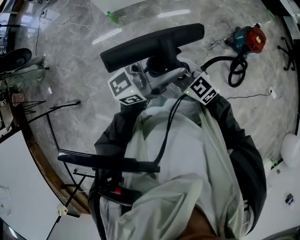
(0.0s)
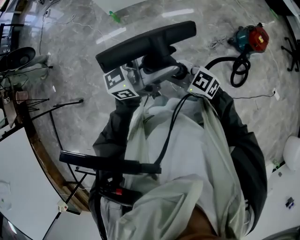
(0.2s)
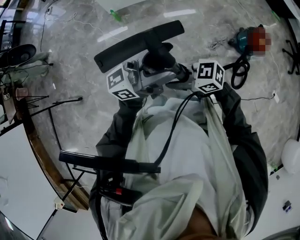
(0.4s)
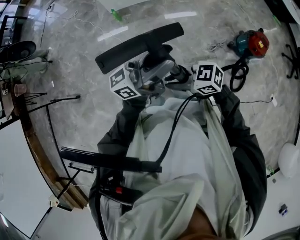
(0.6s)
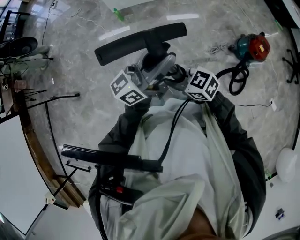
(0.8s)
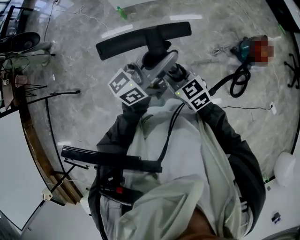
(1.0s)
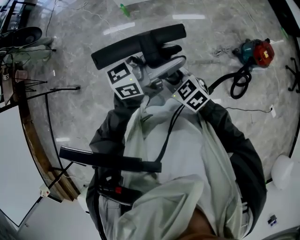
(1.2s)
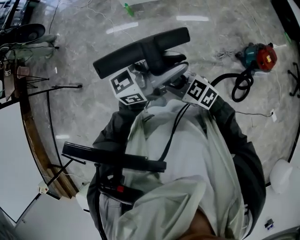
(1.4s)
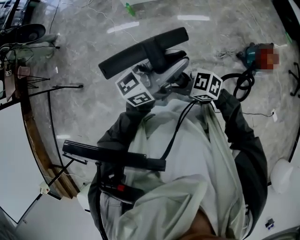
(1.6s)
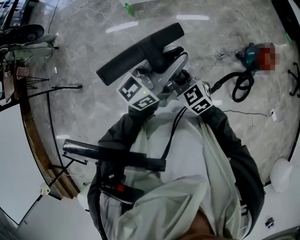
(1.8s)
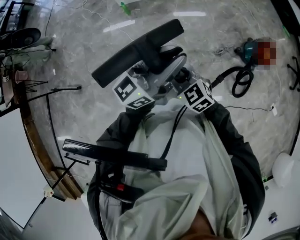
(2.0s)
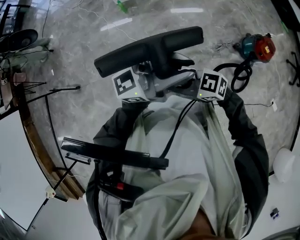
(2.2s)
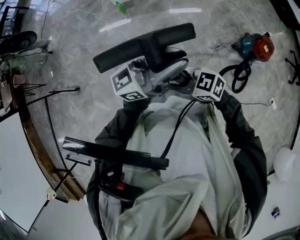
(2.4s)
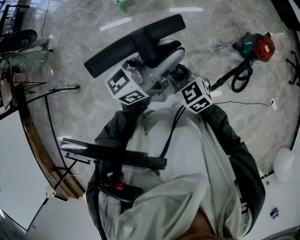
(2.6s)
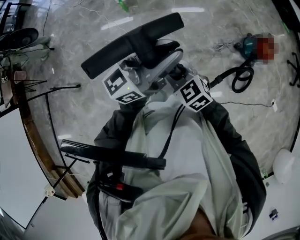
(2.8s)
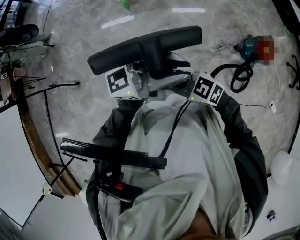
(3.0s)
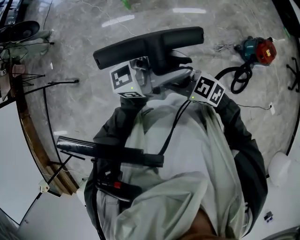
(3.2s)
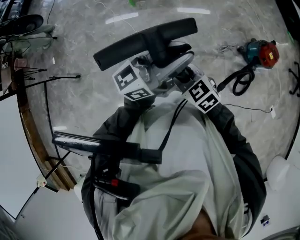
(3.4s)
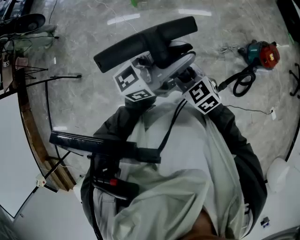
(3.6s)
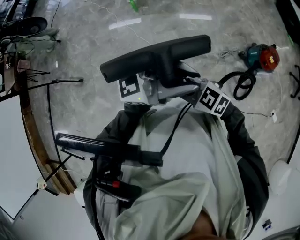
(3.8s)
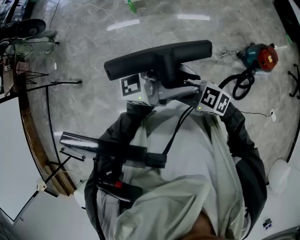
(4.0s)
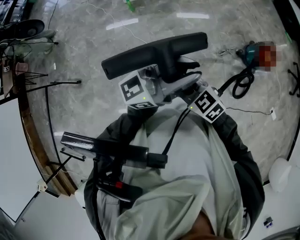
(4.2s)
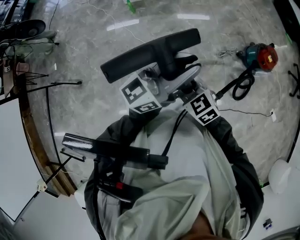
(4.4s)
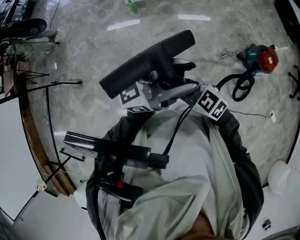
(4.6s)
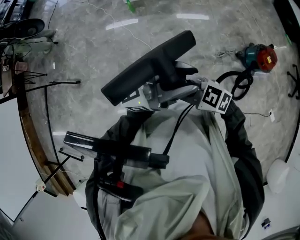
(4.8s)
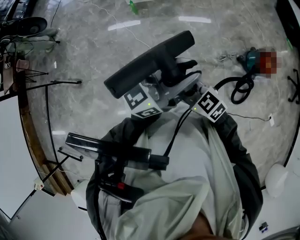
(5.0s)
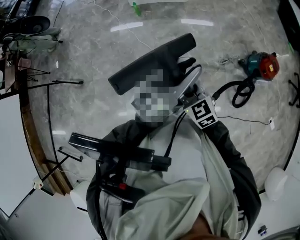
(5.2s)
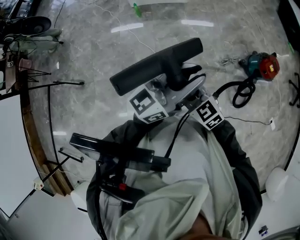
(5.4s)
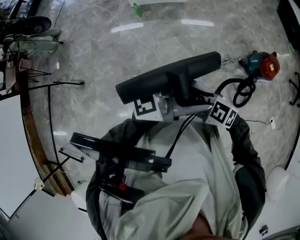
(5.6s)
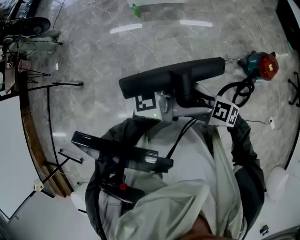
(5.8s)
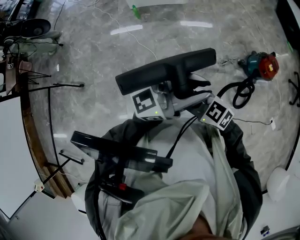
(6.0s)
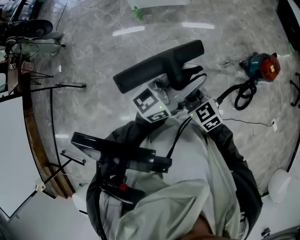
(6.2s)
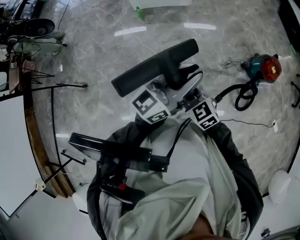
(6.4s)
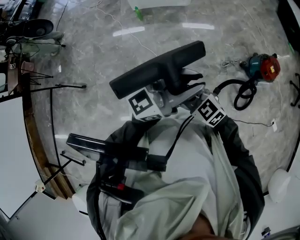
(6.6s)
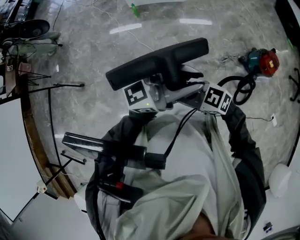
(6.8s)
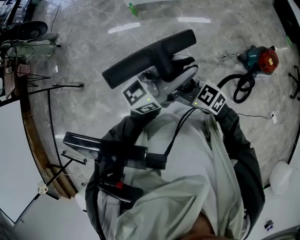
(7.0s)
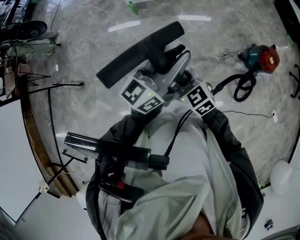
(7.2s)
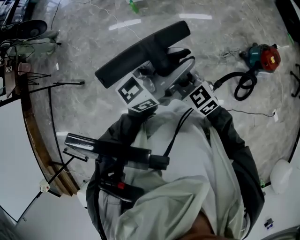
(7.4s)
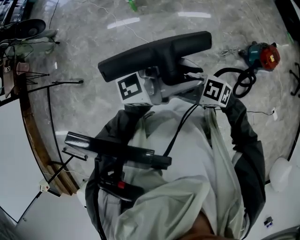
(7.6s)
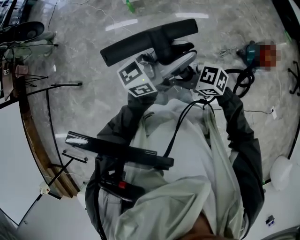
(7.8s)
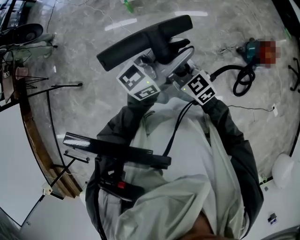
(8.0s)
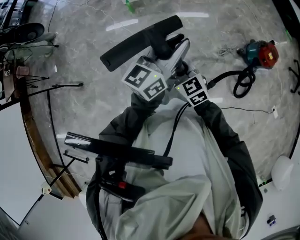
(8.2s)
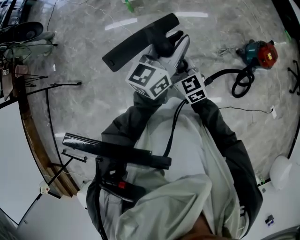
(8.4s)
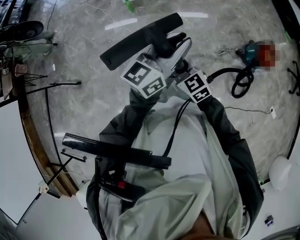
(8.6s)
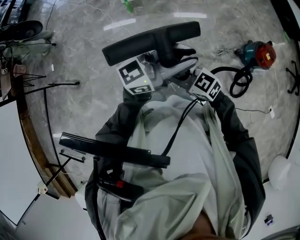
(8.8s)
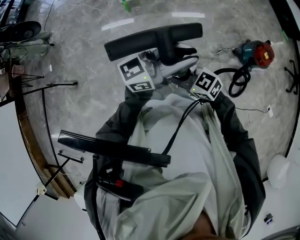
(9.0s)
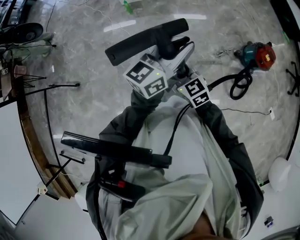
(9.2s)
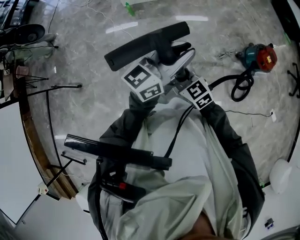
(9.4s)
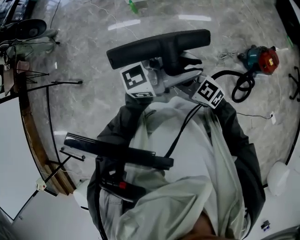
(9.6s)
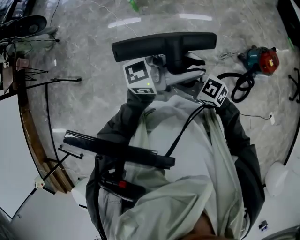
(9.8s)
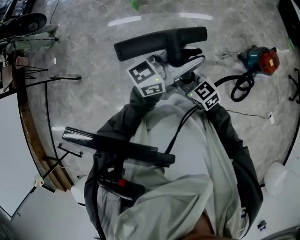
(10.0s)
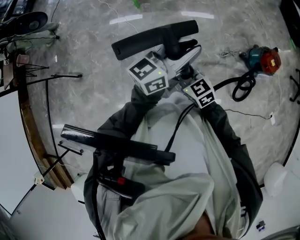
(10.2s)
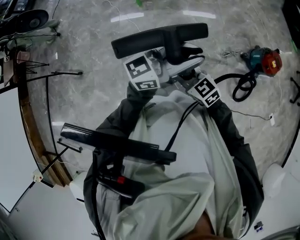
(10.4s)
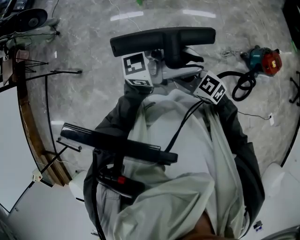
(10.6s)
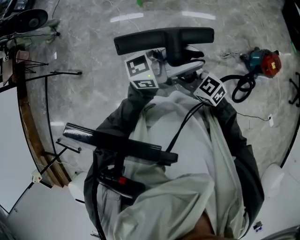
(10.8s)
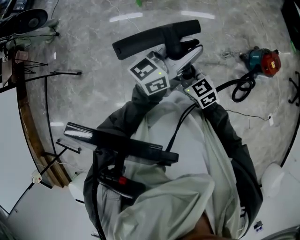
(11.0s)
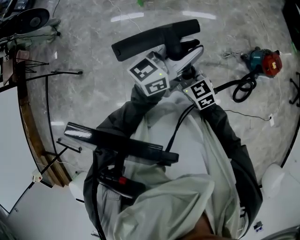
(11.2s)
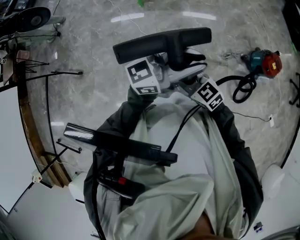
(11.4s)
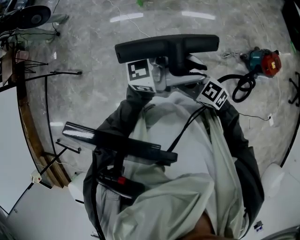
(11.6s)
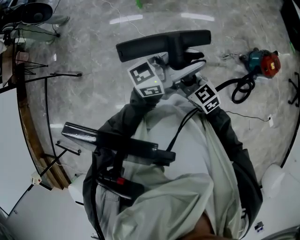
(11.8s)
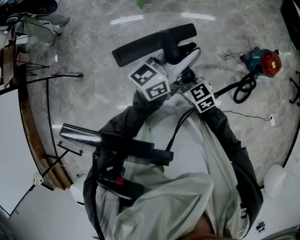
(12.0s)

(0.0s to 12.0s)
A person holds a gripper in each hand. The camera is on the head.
0.0s - 1.6s: The right gripper changes place by approximately 10 cm, turns by about 40 degrees, and closes up. Meanwhile the left gripper closes up.
1.6s - 3.0s: The left gripper shifts by roughly 5 cm, and rotates roughly 20 degrees.
3.0s - 4.4s: The right gripper rotates approximately 30 degrees. The left gripper turns by some 20 degrees.
4.4s - 6.0s: The right gripper changes its angle by roughly 20 degrees.
10.4s - 12.0s: The left gripper changes its angle by approximately 20 degrees.

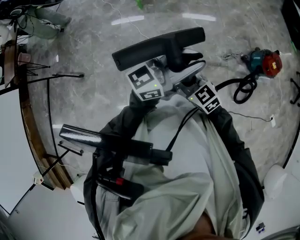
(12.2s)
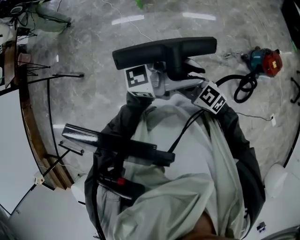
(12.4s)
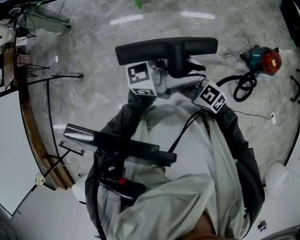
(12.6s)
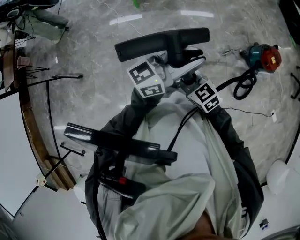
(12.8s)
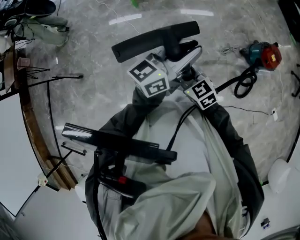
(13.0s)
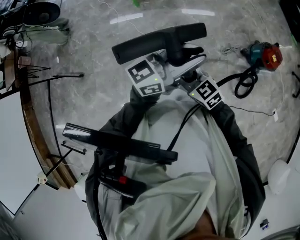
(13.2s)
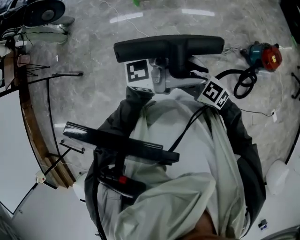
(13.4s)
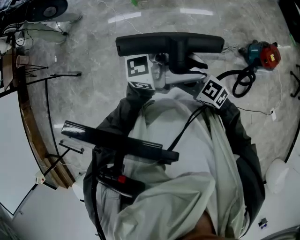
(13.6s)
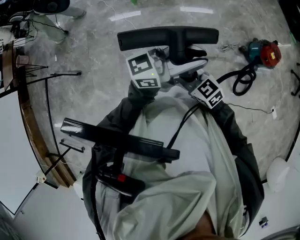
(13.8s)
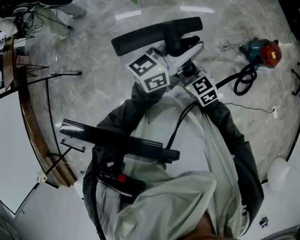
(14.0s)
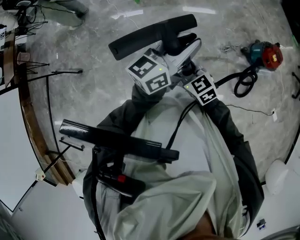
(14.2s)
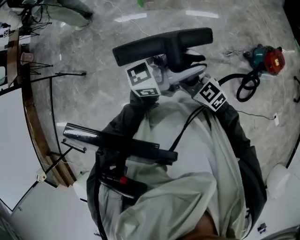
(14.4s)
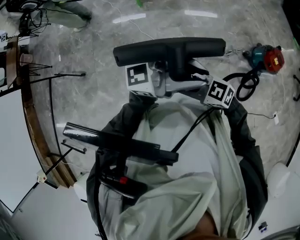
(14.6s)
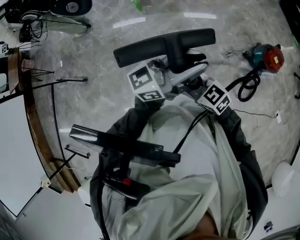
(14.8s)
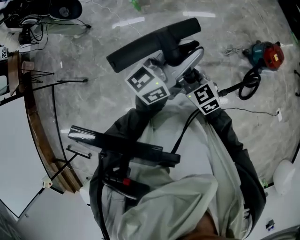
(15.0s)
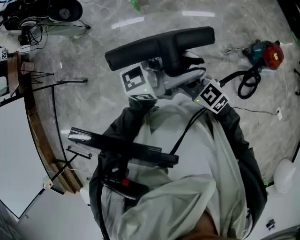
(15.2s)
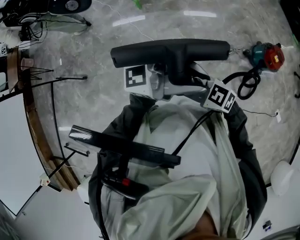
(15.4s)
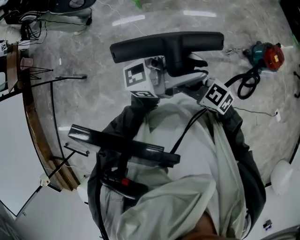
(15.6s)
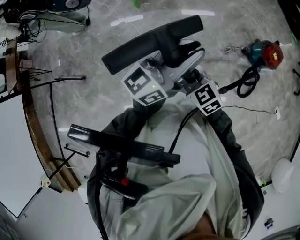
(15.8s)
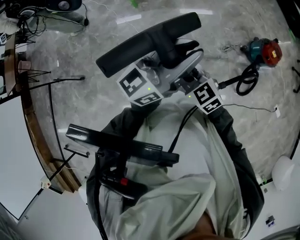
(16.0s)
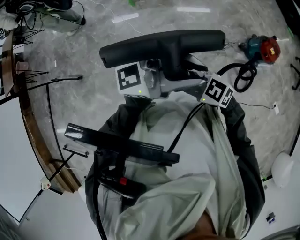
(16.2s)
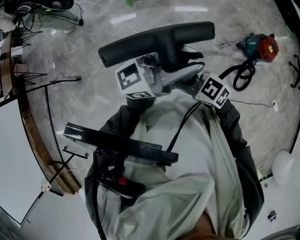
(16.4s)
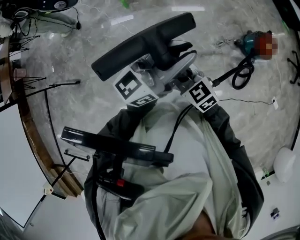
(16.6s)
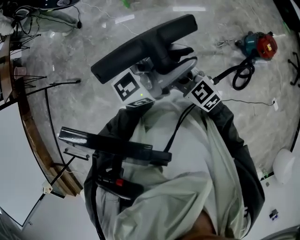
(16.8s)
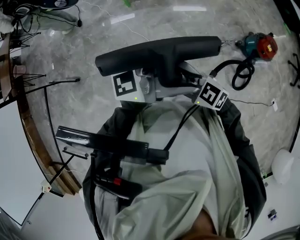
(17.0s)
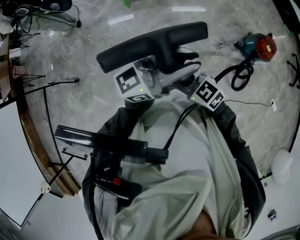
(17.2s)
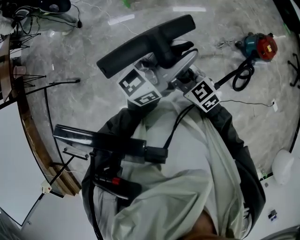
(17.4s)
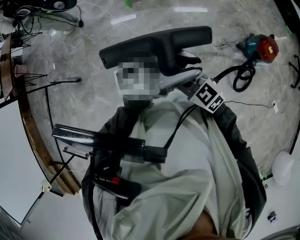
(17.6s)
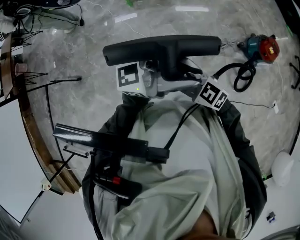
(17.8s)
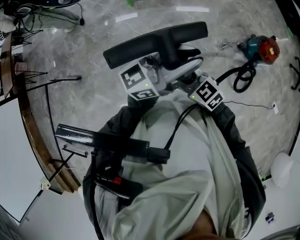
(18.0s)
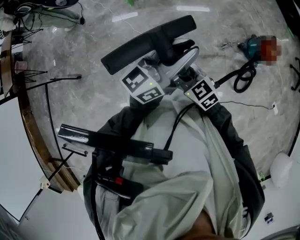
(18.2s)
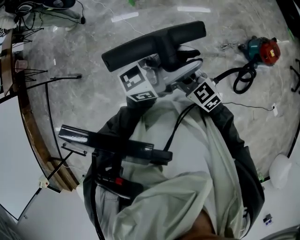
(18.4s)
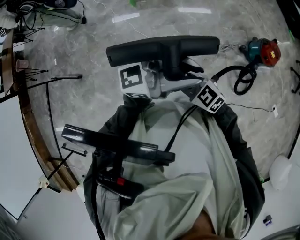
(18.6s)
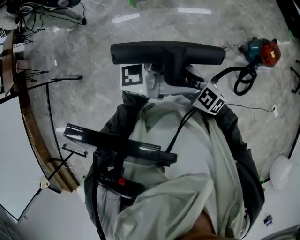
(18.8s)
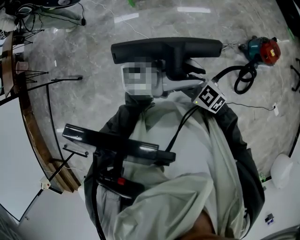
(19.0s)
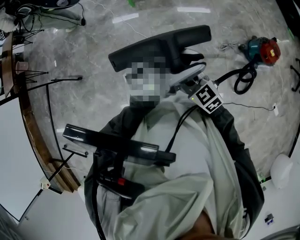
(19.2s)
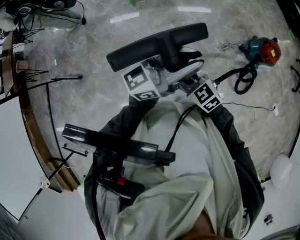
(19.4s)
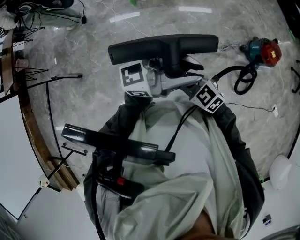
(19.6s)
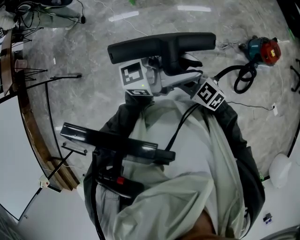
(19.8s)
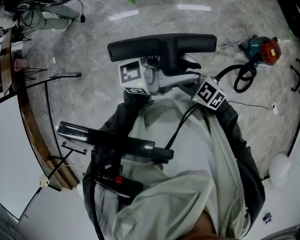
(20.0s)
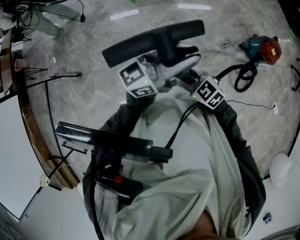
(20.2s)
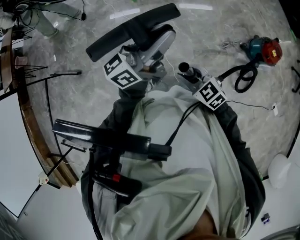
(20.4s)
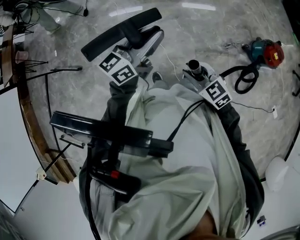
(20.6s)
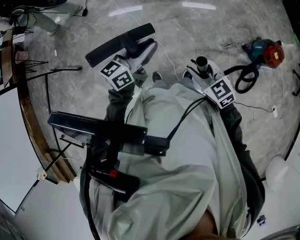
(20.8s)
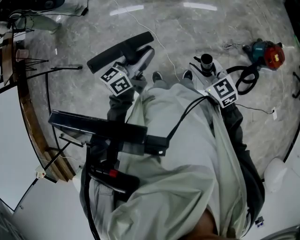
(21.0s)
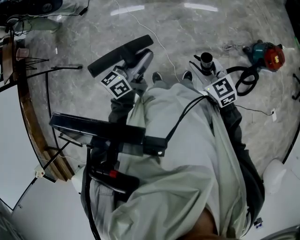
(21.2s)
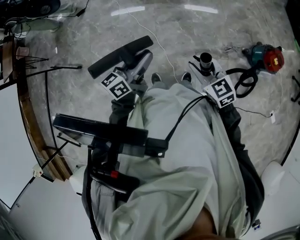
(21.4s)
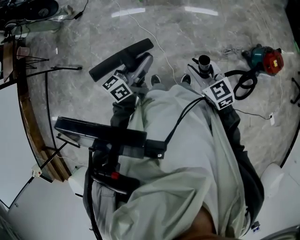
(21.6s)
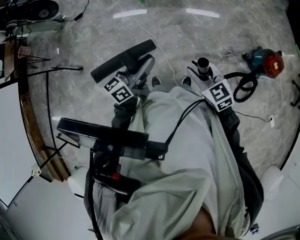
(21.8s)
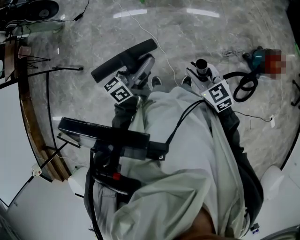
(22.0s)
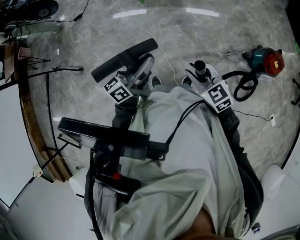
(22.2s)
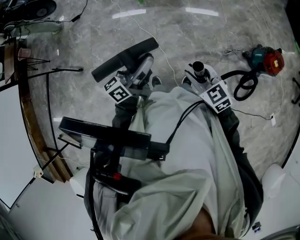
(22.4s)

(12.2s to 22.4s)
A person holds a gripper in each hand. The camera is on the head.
12.2s - 13.6s: The right gripper ends up roughly 5 cm from where it was. Meanwhile the left gripper ends up some 5 cm from where it was, and rotates some 30 degrees.
19.4s - 21.0s: The left gripper is displaced downward by about 15 cm, and swivels some 40 degrees, while the right gripper ends up approximately 5 cm from where it was.
21.0s - 22.4s: There are only small adjustments of the grippers.

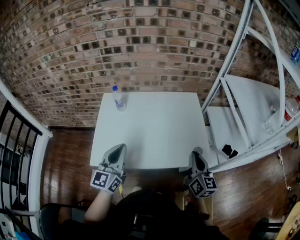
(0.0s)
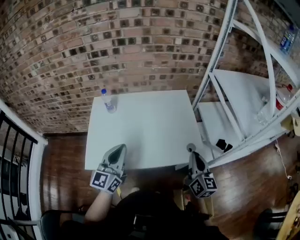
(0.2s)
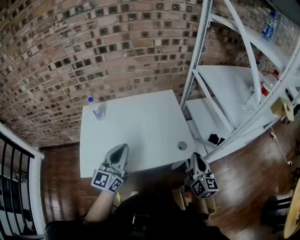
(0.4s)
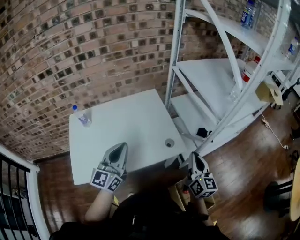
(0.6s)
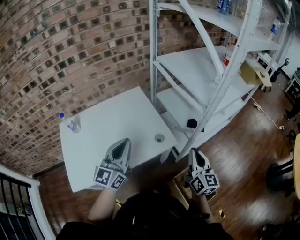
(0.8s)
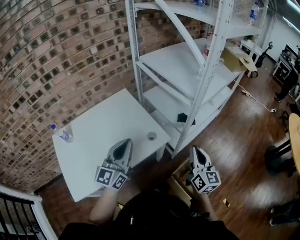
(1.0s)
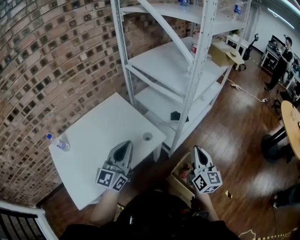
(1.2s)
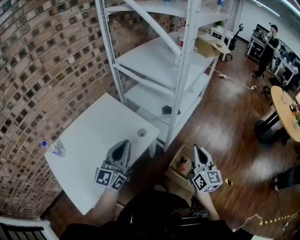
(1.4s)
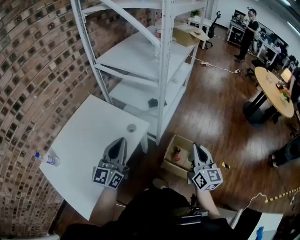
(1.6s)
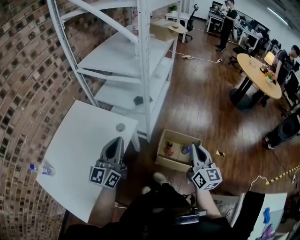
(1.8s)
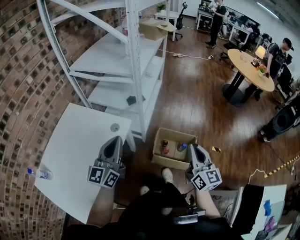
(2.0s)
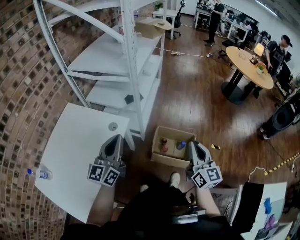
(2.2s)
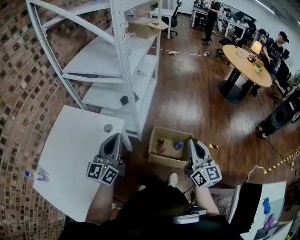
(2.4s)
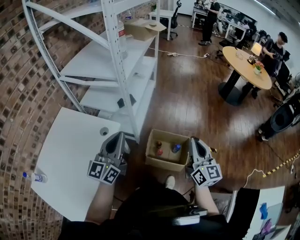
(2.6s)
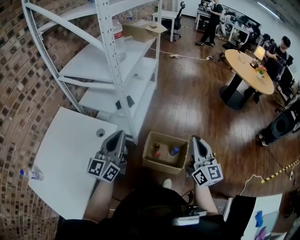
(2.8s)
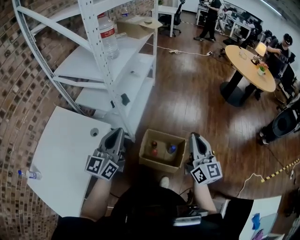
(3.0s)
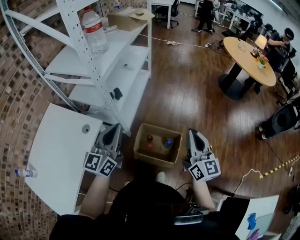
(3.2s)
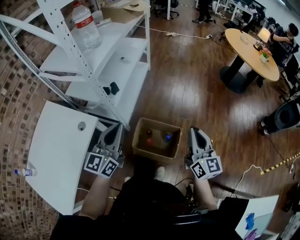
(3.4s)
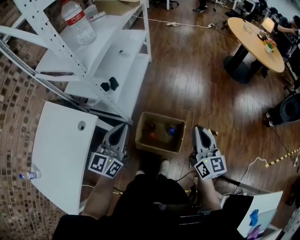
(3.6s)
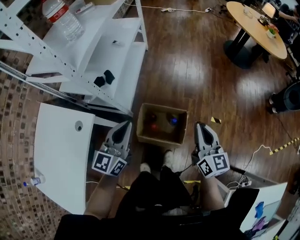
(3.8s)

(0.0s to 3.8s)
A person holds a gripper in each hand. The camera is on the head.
0.0s - 1.2s: The left gripper ends up approximately 25 cm from where it was, and changes its angle by approximately 40 degrees, while the right gripper changes place by about 25 cm, and swivels some 40 degrees.
1.2s - 2.6s: The right gripper shifts by roughly 25 cm, and swivels some 30 degrees, while the left gripper changes place by about 15 cm, and swivels roughly 30 degrees.
2.6s - 3.8s: Both grippers travel together to the right, forward and downward, some 25 cm.
